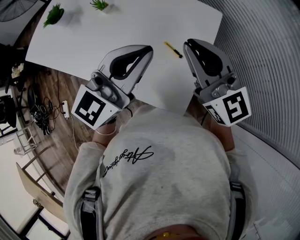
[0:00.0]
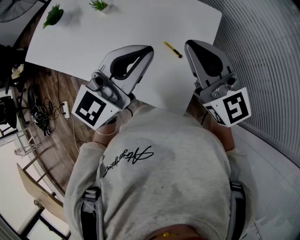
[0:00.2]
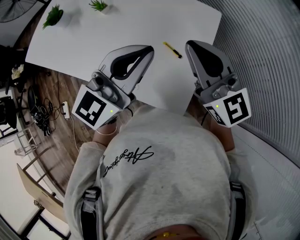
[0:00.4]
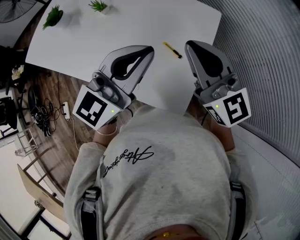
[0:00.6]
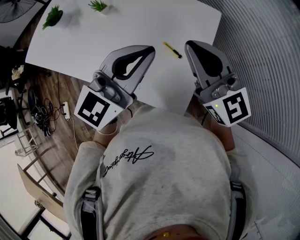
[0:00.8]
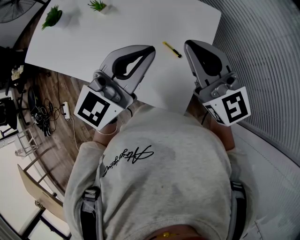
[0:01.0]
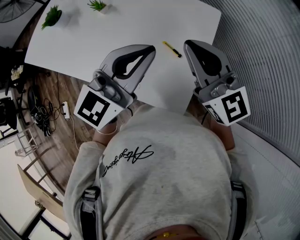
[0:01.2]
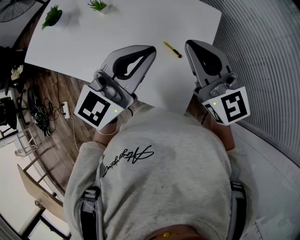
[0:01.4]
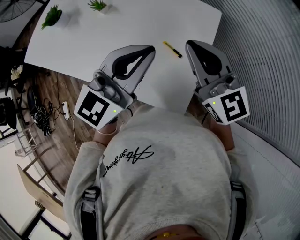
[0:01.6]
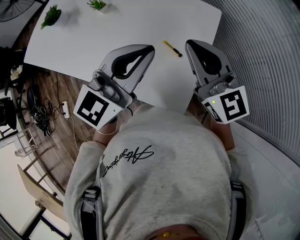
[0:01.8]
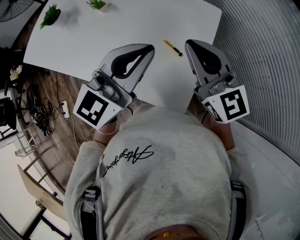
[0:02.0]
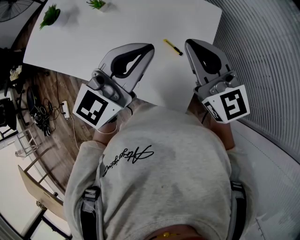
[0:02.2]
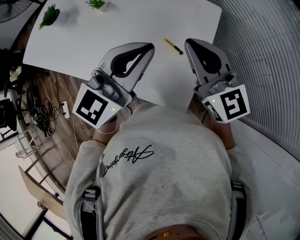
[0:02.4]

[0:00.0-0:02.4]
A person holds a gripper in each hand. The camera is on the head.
0:00.0 to 0:01.2: Both grippers stay put.
0:01.2 to 0:02.4: There are only small adjustments of the grippers.

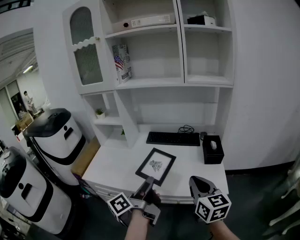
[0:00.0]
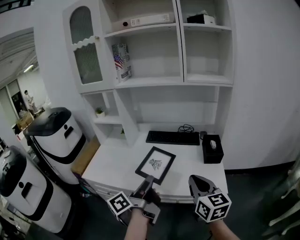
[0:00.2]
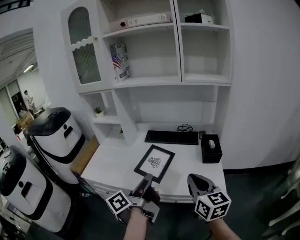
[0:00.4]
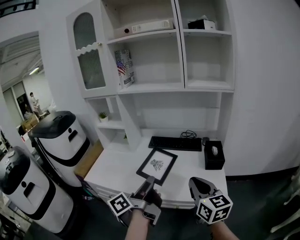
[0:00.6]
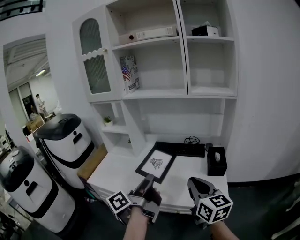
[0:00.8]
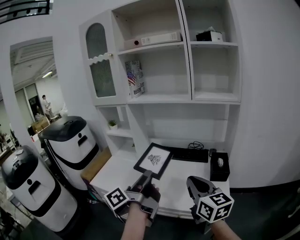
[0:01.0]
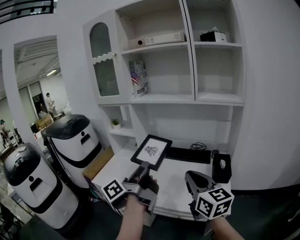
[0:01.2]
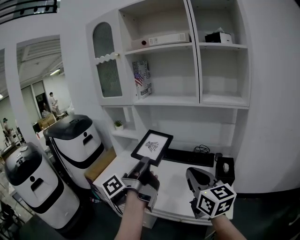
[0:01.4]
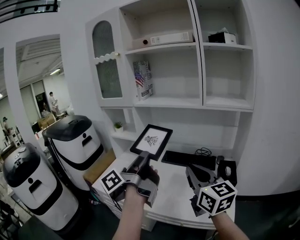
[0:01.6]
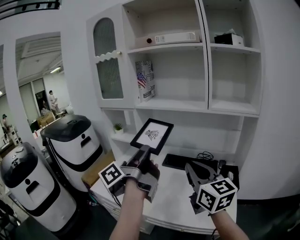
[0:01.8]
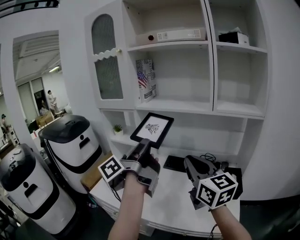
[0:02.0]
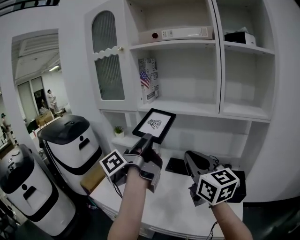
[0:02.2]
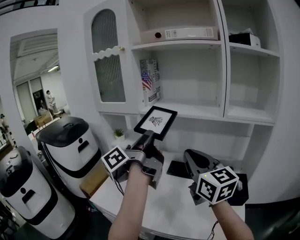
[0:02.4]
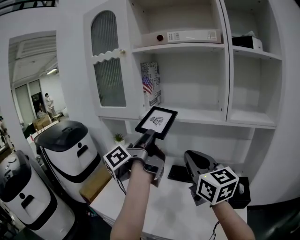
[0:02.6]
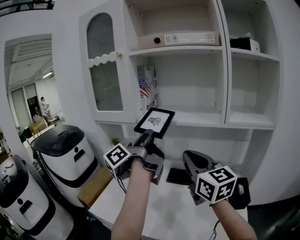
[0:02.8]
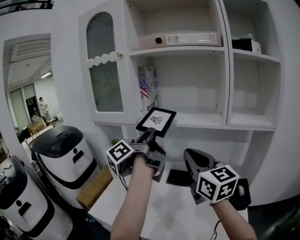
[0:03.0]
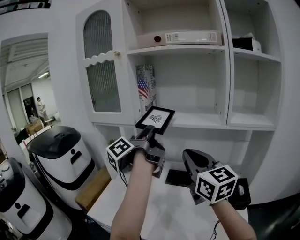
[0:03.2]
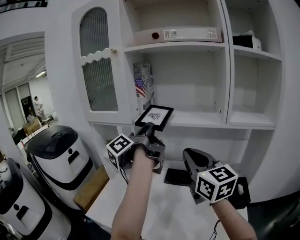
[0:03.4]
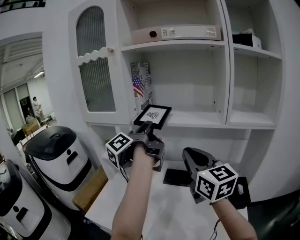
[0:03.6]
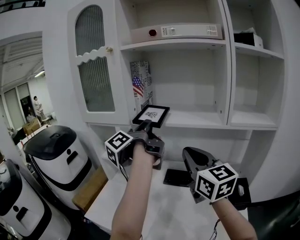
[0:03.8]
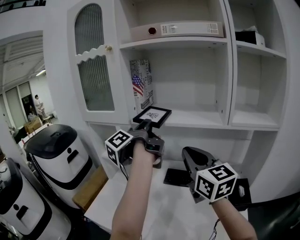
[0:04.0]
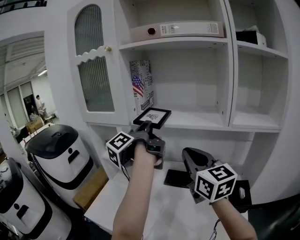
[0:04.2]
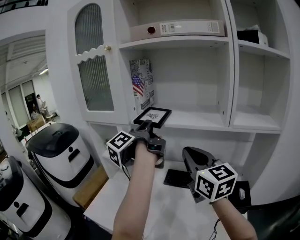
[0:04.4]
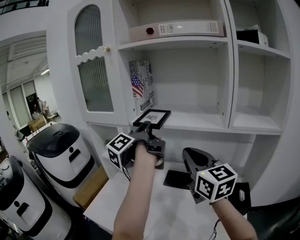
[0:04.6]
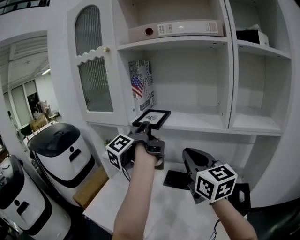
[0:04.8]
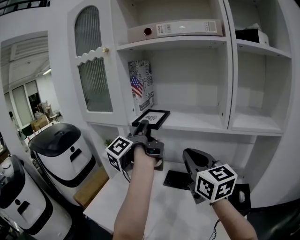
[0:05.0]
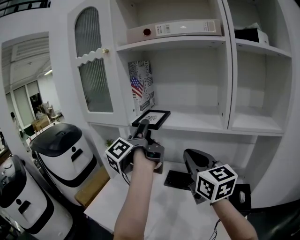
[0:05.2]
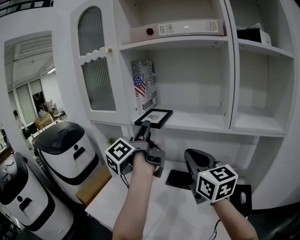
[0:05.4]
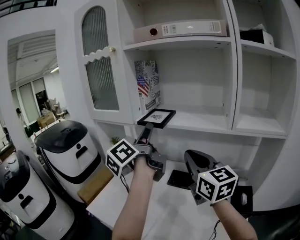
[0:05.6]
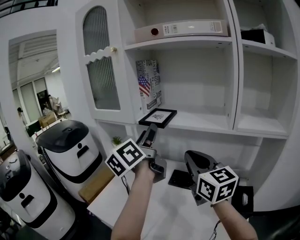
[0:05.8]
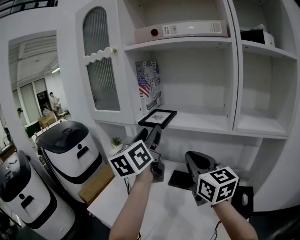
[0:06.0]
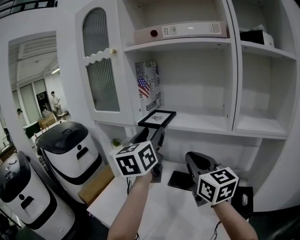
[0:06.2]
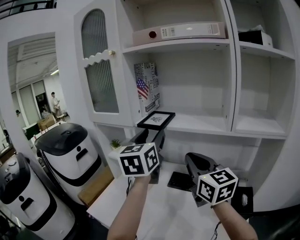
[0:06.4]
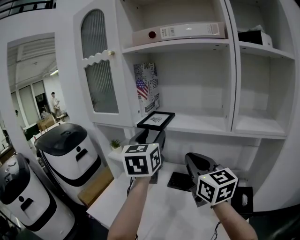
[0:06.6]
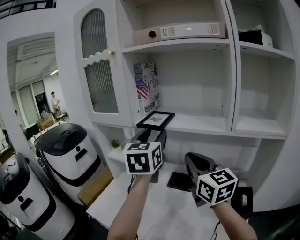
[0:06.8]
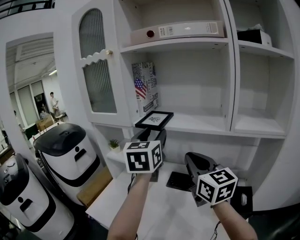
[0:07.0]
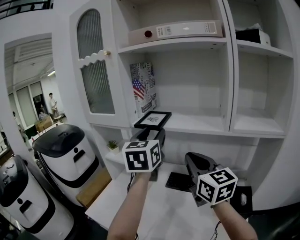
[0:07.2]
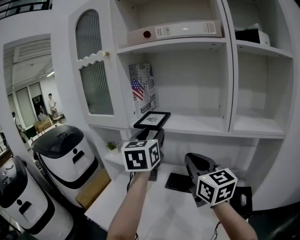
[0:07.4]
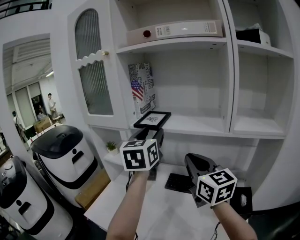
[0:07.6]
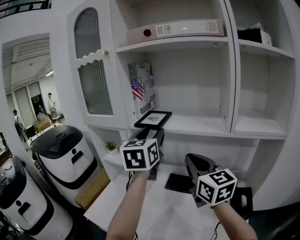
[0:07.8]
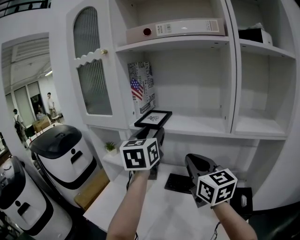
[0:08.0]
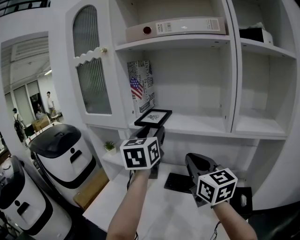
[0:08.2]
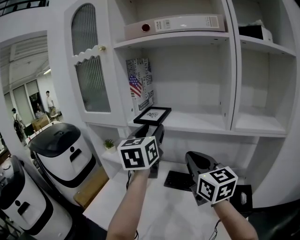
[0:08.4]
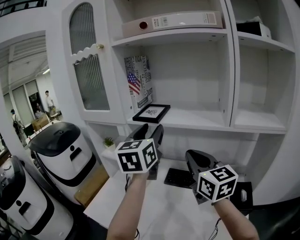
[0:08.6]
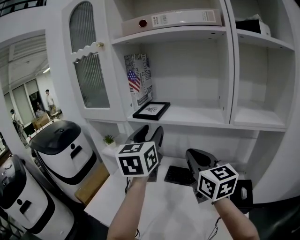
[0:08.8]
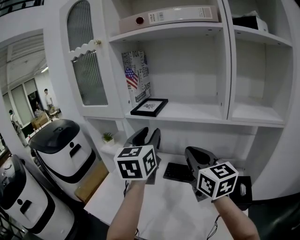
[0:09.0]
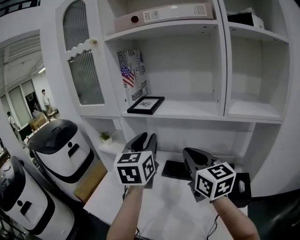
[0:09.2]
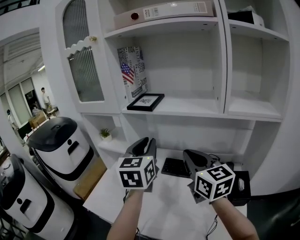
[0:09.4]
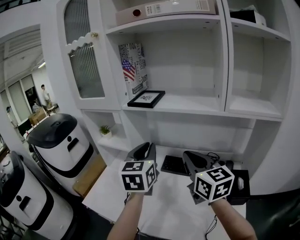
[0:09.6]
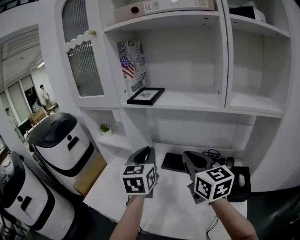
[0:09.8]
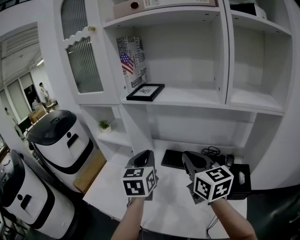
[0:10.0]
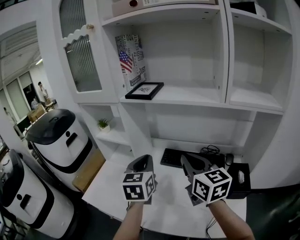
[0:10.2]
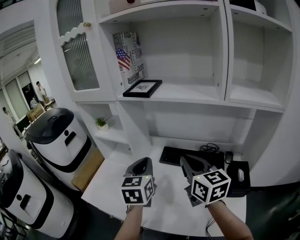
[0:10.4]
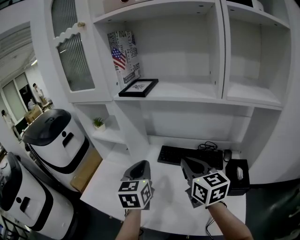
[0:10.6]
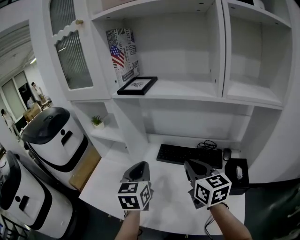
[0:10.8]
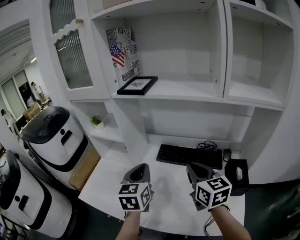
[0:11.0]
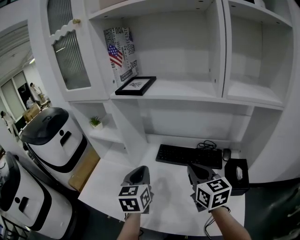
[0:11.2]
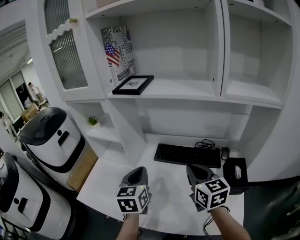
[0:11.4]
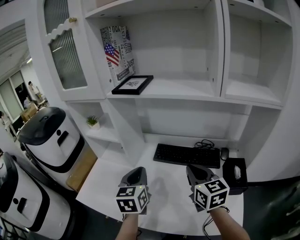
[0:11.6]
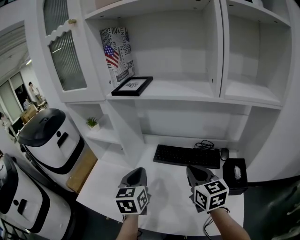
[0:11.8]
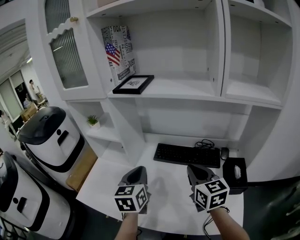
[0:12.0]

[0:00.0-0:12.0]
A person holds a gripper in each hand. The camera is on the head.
0:00.0 to 0:01.6: Both grippers move upward and forward, roughly 15 cm. The right gripper turns by roughly 20 degrees.
0:01.6 to 0:03.0: The right gripper goes about 20 cm forward and upward, while the left gripper travels forward by some 25 cm.
0:03.0 to 0:04.4: Both grippers travel together forward, approximately 5 cm.
0:04.4 to 0:06.0: The left gripper is displaced backward by about 5 cm, rotates around the line of its fingers by approximately 60 degrees, clockwise from behind, and opens up.
0:06.0 to 0:07.6: The left gripper shifts by approximately 5 cm, and rotates approximately 30 degrees.
0:07.6 to 0:09.0: The grippers move only a little.
0:09.0 to 0:10.4: The right gripper travels downward by some 10 cm, while the left gripper shifts roughly 20 cm downward, and closes its fingers.
0:10.4 to 0:12.0: The right gripper goes roughly 5 cm downward.

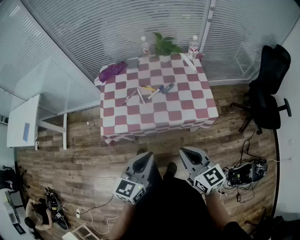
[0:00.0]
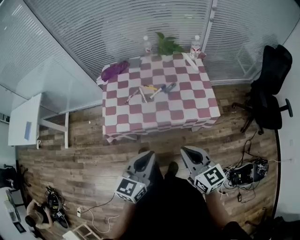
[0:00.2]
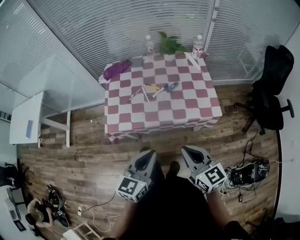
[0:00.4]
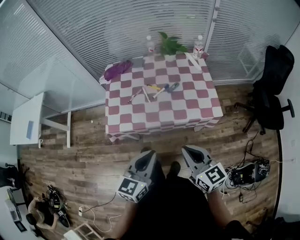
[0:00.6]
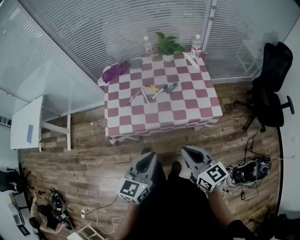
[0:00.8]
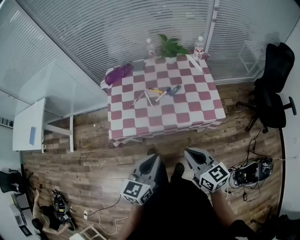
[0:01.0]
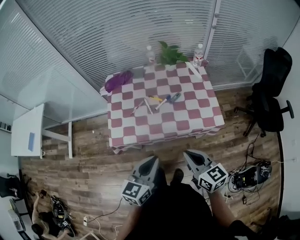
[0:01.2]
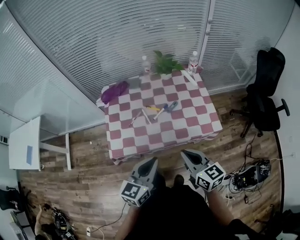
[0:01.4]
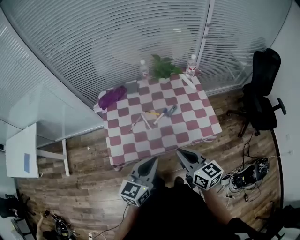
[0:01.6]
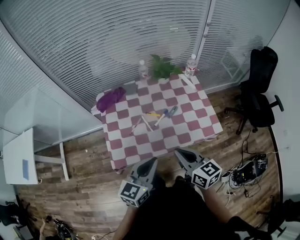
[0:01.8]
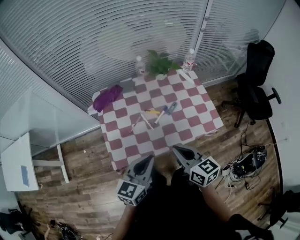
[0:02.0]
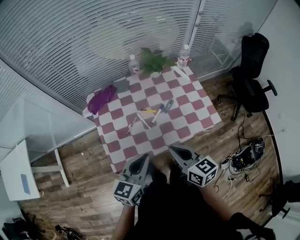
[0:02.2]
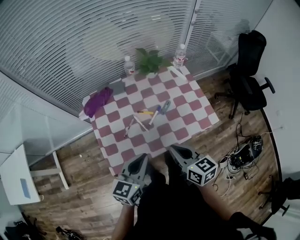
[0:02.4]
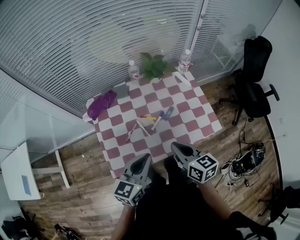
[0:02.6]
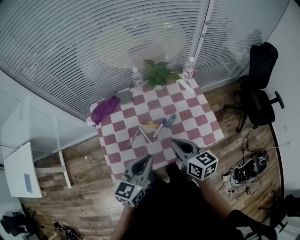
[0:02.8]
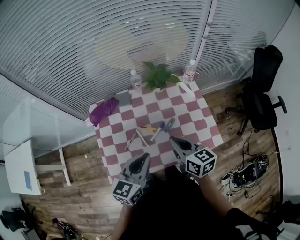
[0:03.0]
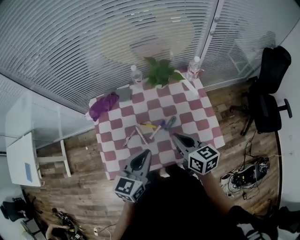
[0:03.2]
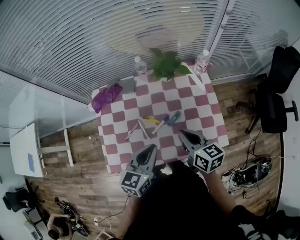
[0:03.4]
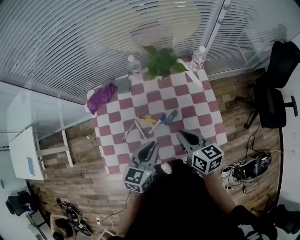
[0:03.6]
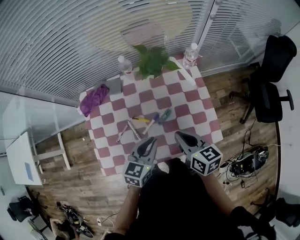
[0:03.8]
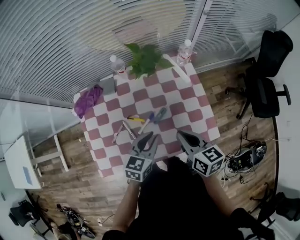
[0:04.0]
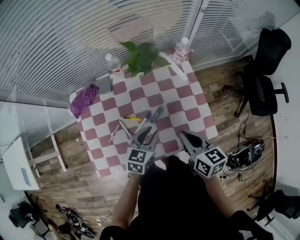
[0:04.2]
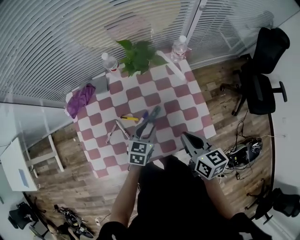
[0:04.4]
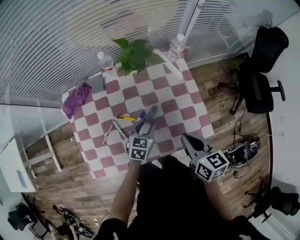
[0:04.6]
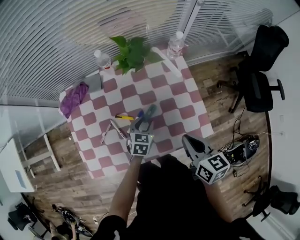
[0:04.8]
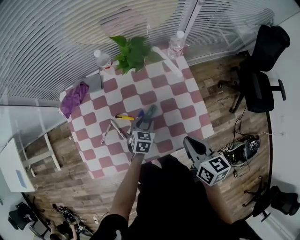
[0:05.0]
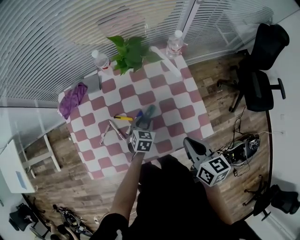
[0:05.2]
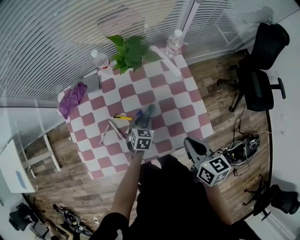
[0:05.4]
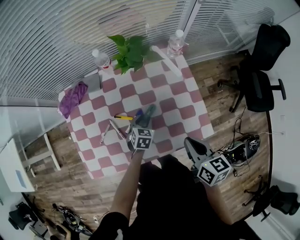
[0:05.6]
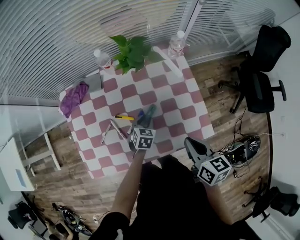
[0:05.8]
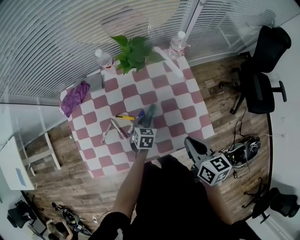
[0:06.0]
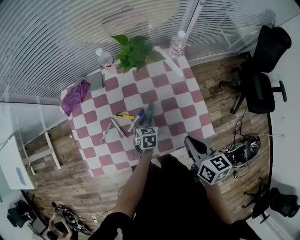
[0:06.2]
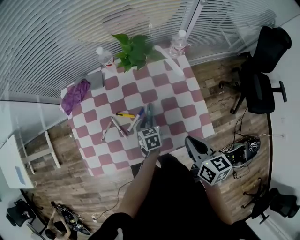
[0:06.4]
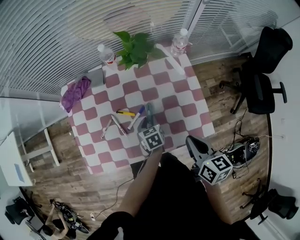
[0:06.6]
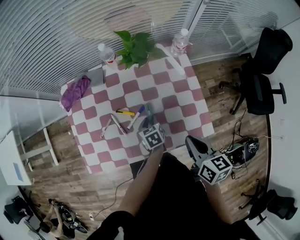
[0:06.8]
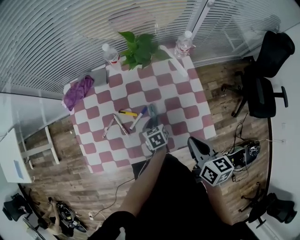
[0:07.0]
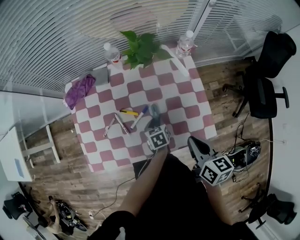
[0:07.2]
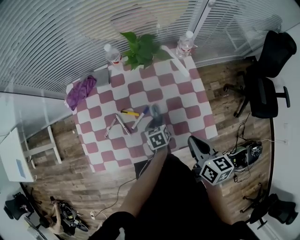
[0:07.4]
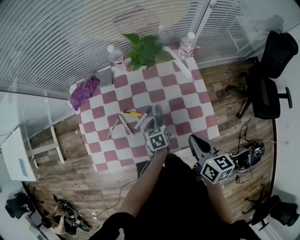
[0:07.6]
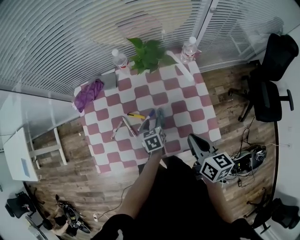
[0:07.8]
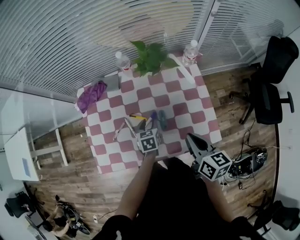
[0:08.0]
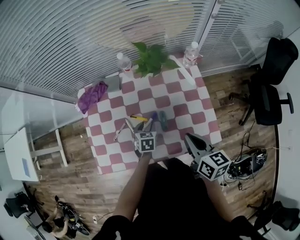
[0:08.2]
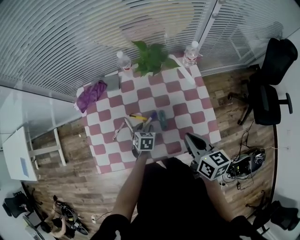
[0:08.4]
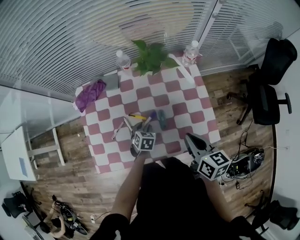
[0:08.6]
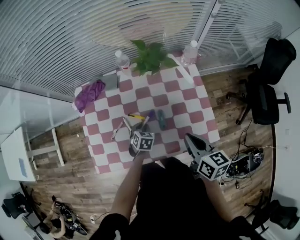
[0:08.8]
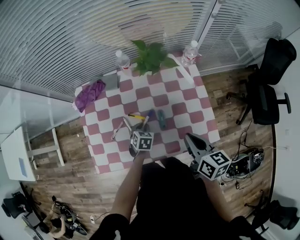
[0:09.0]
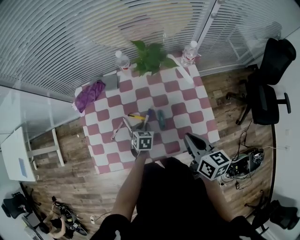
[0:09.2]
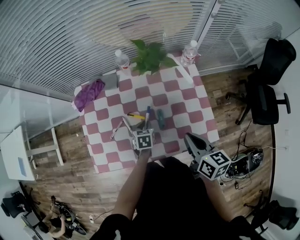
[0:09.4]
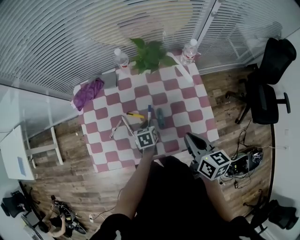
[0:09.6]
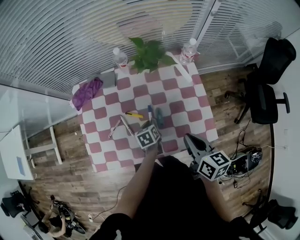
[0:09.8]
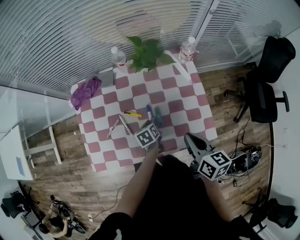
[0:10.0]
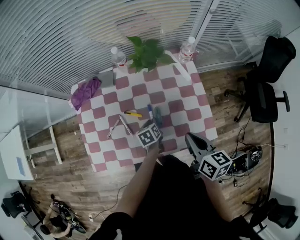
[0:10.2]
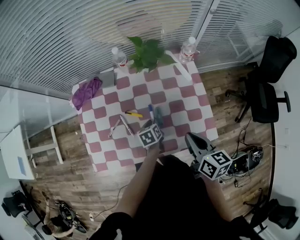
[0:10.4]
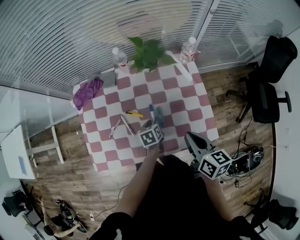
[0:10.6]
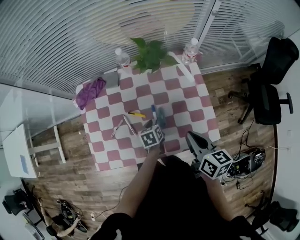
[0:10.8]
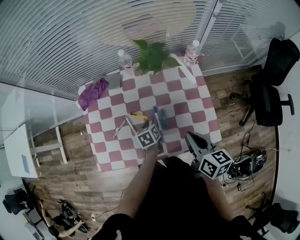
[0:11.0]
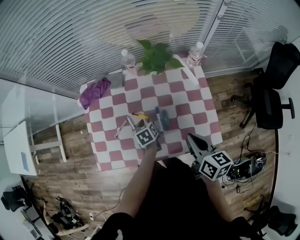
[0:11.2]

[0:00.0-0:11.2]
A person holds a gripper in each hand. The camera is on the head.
0:00.0 to 0:01.6: The two grippers go about 15 cm forward and to the left.
0:01.6 to 0:03.2: Both grippers move forward, some 20 cm.
0:03.2 to 0:04.8: The left gripper heads downward and forward, covering about 30 cm, changes its angle by roughly 30 degrees, and opens; the right gripper is displaced to the right by some 10 cm.
0:04.8 to 0:06.4: The left gripper swivels some 30 degrees.
0:06.4 to 0:08.0: The left gripper moves to the left, roughly 5 cm.
0:08.0 to 0:09.6: The left gripper closes.
0:09.6 to 0:11.2: The grippers stay close to where they were, moving slightly.
